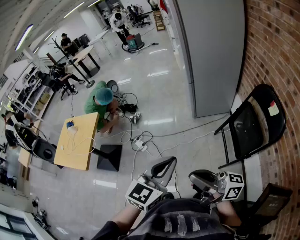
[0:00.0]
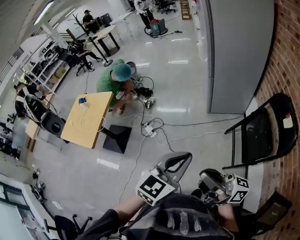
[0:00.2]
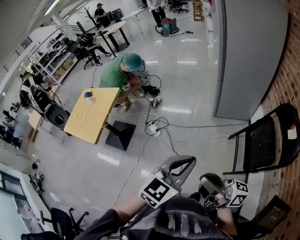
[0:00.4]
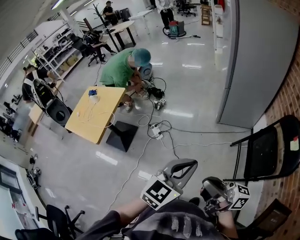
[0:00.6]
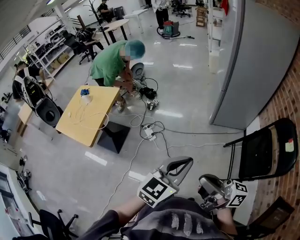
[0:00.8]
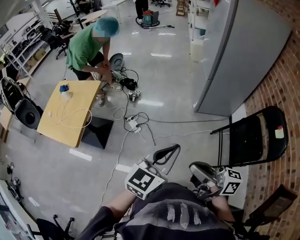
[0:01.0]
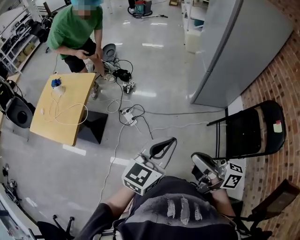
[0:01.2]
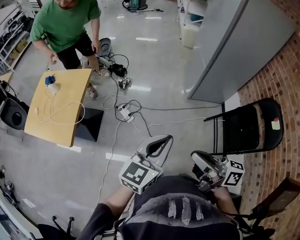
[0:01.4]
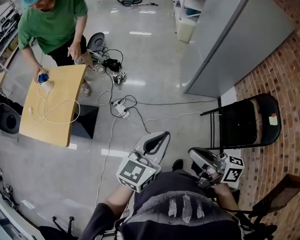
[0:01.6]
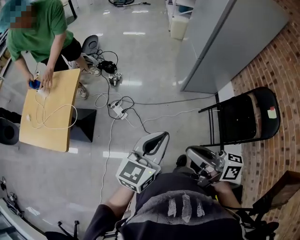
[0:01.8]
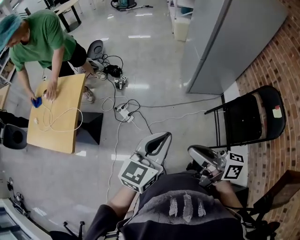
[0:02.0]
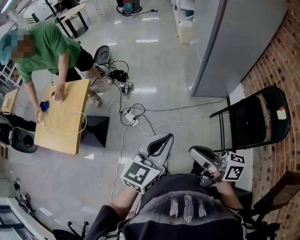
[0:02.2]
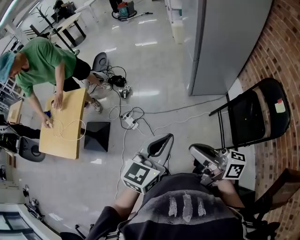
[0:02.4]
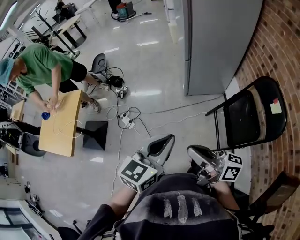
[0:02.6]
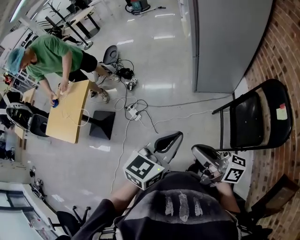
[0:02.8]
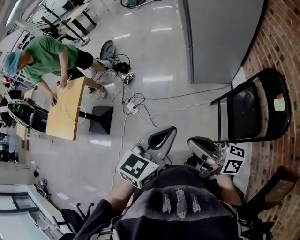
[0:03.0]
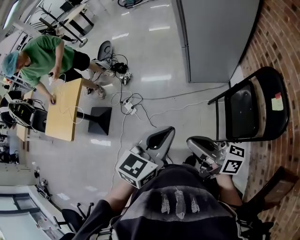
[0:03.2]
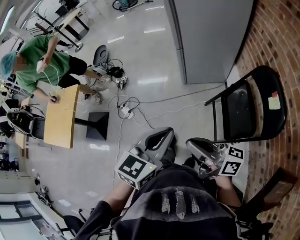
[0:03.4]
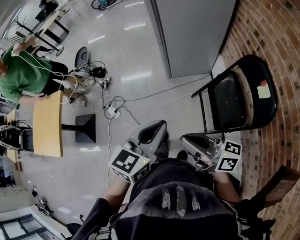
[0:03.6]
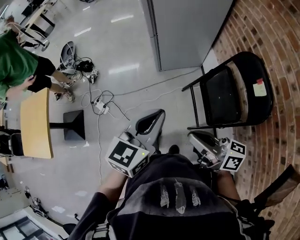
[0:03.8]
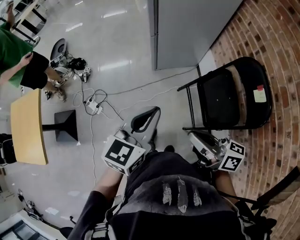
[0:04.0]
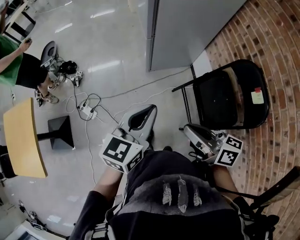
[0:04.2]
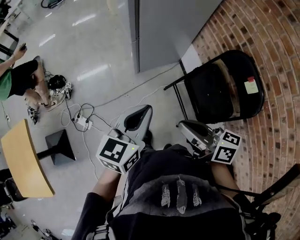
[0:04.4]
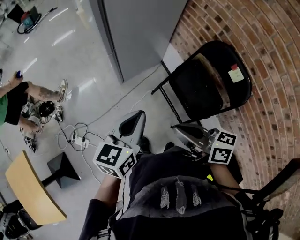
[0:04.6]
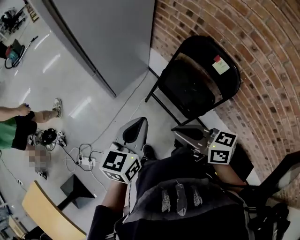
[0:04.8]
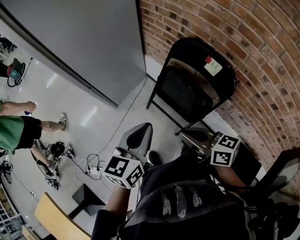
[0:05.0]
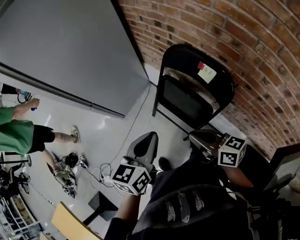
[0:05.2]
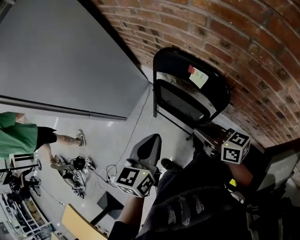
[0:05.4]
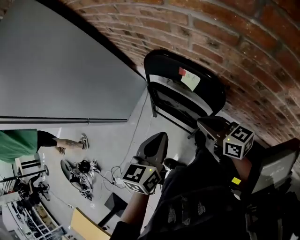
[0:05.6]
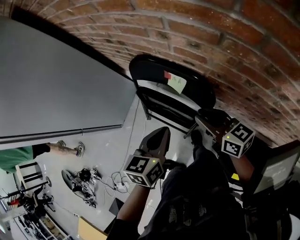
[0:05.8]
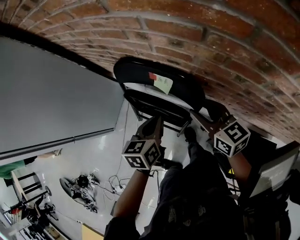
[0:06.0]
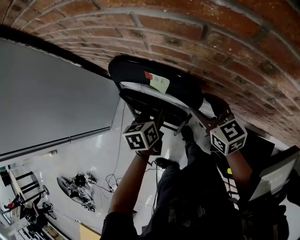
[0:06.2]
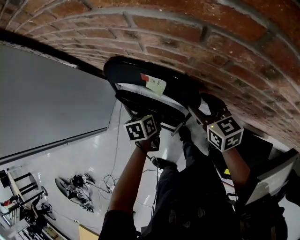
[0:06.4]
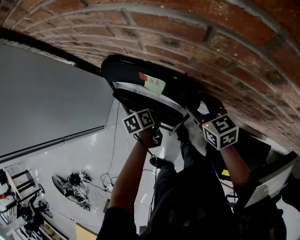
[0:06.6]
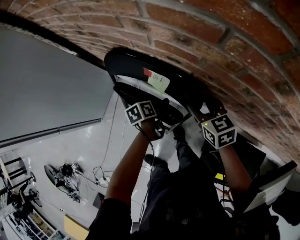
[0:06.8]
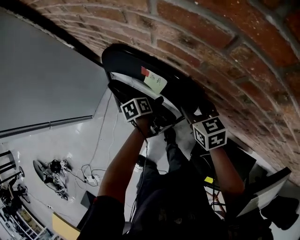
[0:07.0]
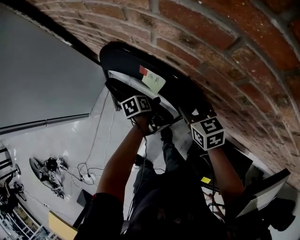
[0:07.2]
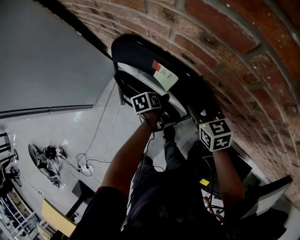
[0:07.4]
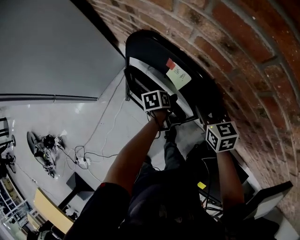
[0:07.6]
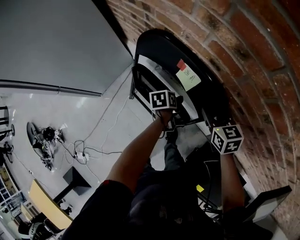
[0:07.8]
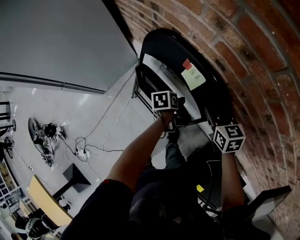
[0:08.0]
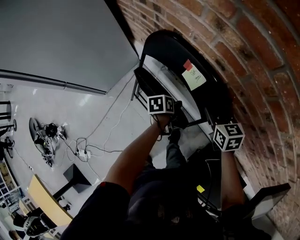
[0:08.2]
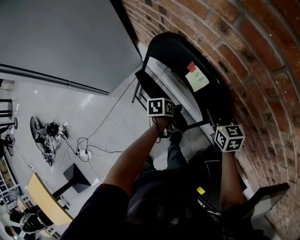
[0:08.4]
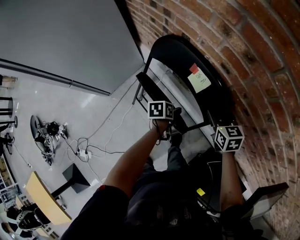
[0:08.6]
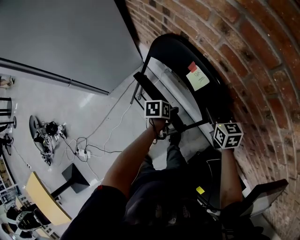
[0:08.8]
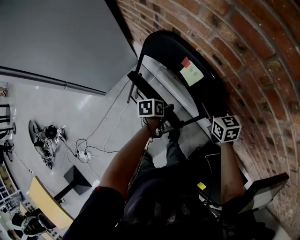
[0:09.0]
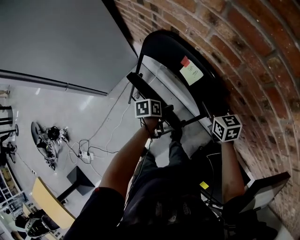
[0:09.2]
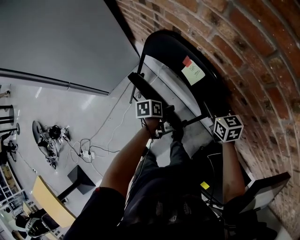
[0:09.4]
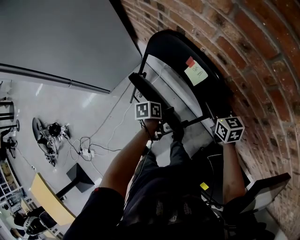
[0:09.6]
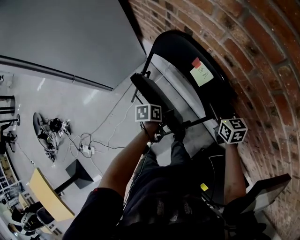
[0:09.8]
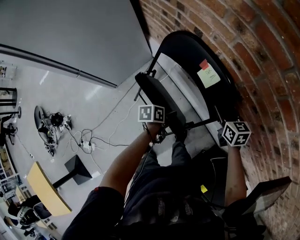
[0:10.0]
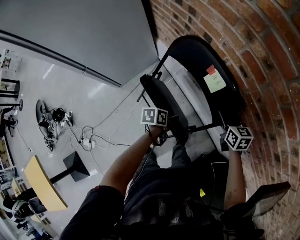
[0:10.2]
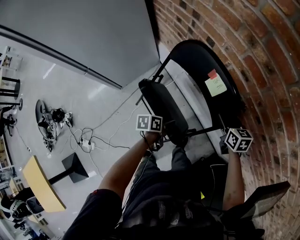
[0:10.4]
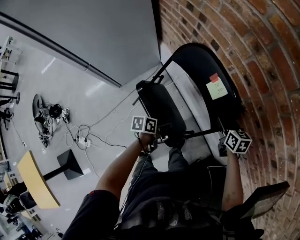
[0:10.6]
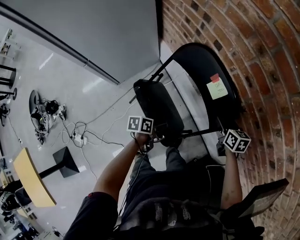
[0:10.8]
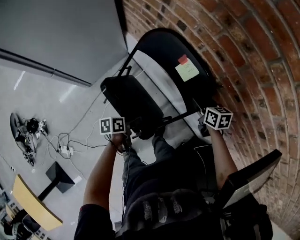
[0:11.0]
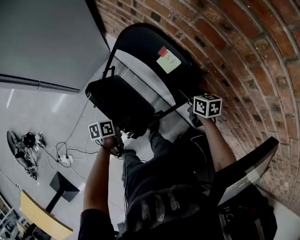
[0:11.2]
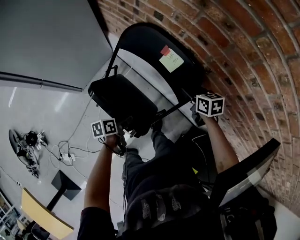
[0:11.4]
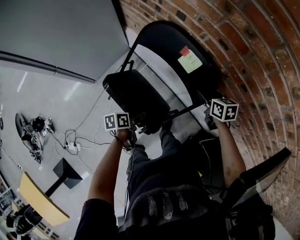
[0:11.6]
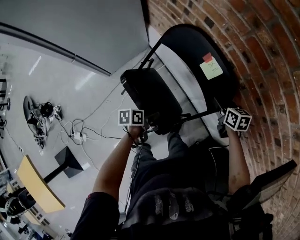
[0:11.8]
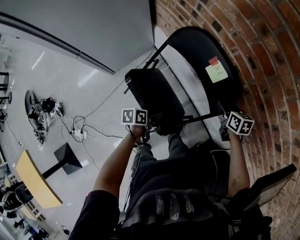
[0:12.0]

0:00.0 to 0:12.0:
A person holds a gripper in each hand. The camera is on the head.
0:00.0 to 0:01.6: The left gripper heads to the left and forward, covering some 25 cm. Meanwhile the right gripper moves forward and to the left, about 25 cm, and rotates about 30 degrees.
0:01.6 to 0:03.0: The grippers both shift to the right by approximately 30 cm.
0:03.0 to 0:04.4: Both grippers travel together forward, roughly 20 cm. The right gripper changes its angle by approximately 40 degrees.
0:04.4 to 0:06.0: The pair of grippers is taken approximately 50 cm. The left gripper rotates some 40 degrees. The right gripper turns by approximately 60 degrees, and opens its fingers.
0:06.0 to 0:07.6: The right gripper goes roughly 10 cm downward, and swivels approximately 20 degrees. Meanwhile the left gripper travels downward by about 20 cm, swivels about 40 degrees, and opens up.
0:07.6 to 0:09.0: The left gripper shifts about 10 cm backward.
0:09.0 to 0:10.4: The left gripper goes roughly 5 cm backward.
0:10.4 to 0:12.0: The left gripper shifts about 5 cm backward.

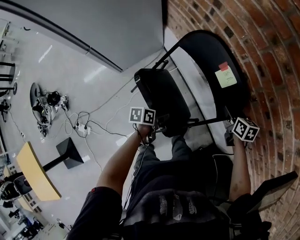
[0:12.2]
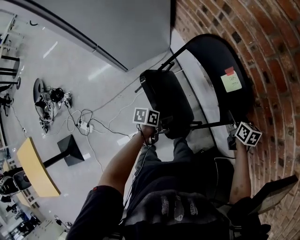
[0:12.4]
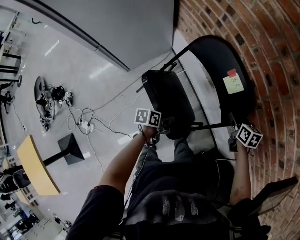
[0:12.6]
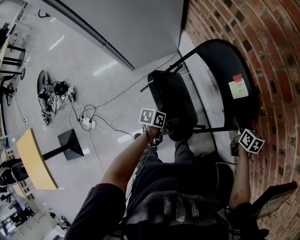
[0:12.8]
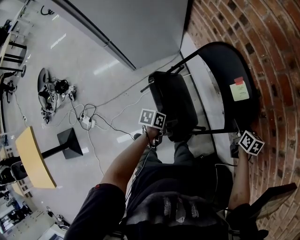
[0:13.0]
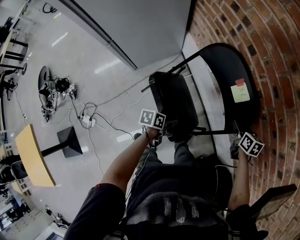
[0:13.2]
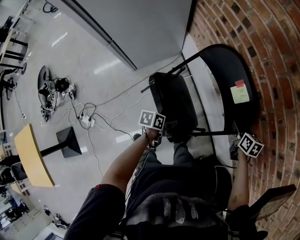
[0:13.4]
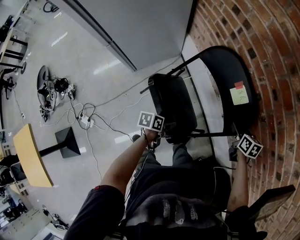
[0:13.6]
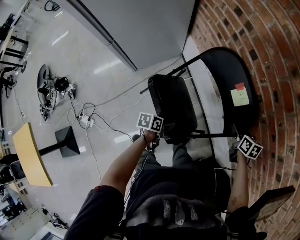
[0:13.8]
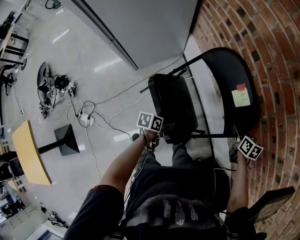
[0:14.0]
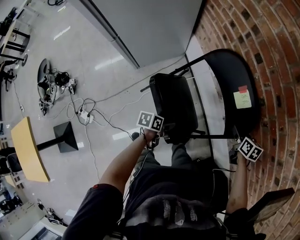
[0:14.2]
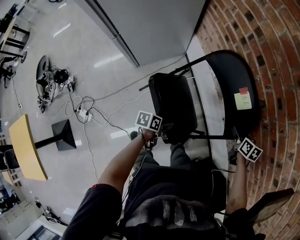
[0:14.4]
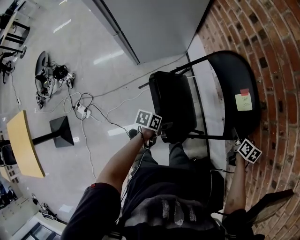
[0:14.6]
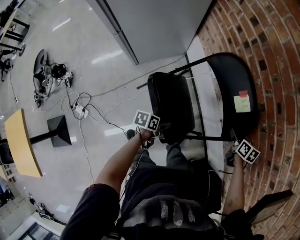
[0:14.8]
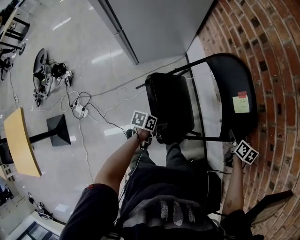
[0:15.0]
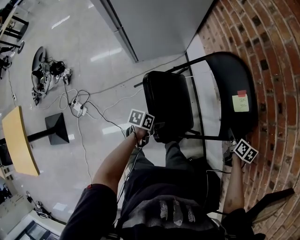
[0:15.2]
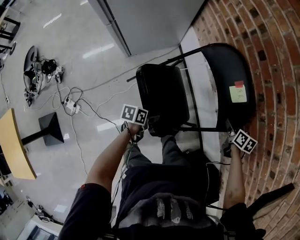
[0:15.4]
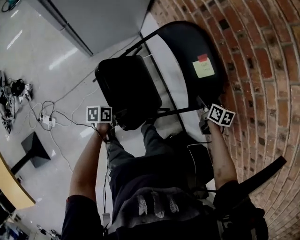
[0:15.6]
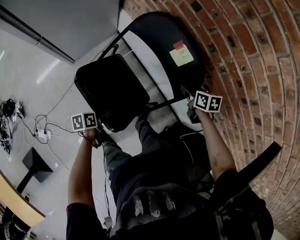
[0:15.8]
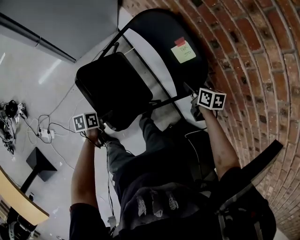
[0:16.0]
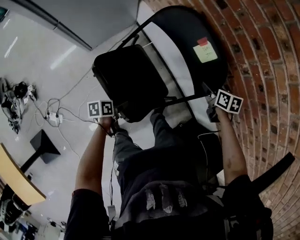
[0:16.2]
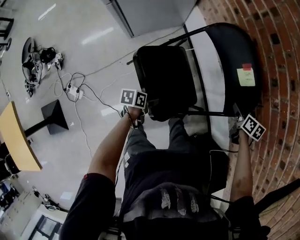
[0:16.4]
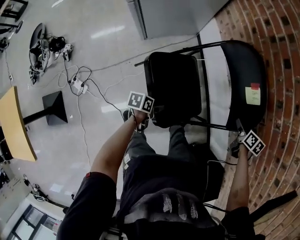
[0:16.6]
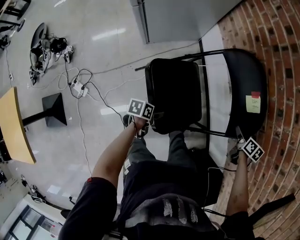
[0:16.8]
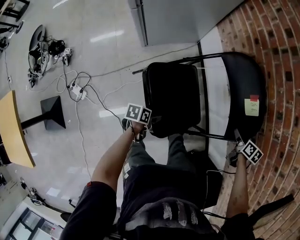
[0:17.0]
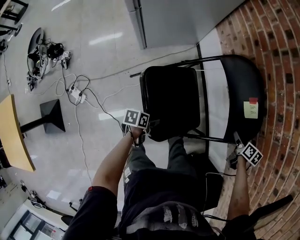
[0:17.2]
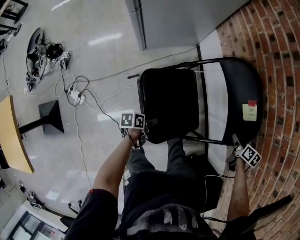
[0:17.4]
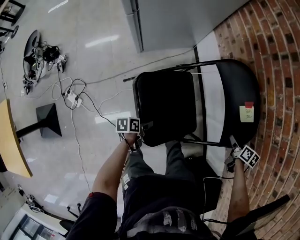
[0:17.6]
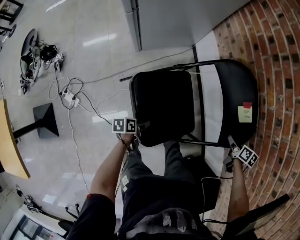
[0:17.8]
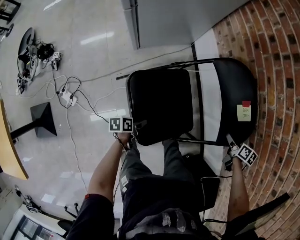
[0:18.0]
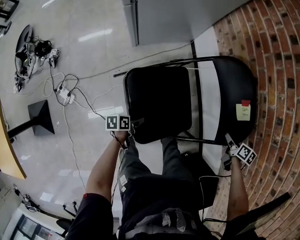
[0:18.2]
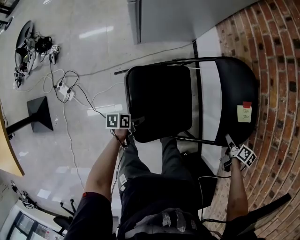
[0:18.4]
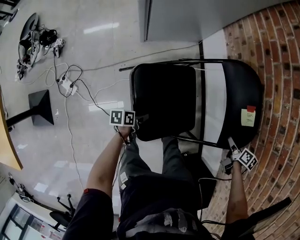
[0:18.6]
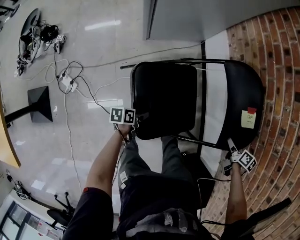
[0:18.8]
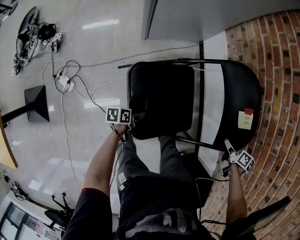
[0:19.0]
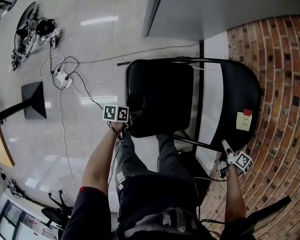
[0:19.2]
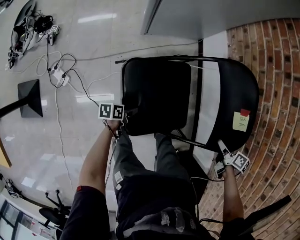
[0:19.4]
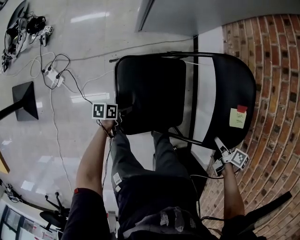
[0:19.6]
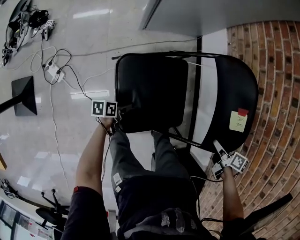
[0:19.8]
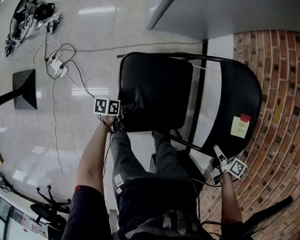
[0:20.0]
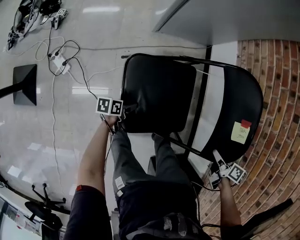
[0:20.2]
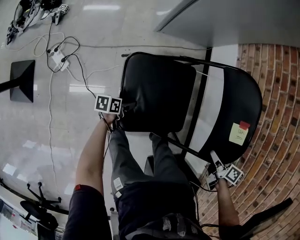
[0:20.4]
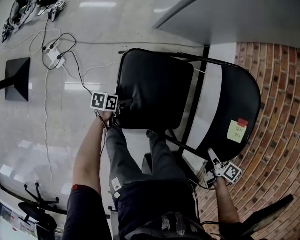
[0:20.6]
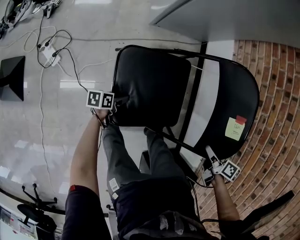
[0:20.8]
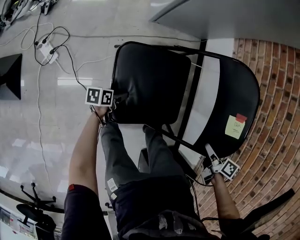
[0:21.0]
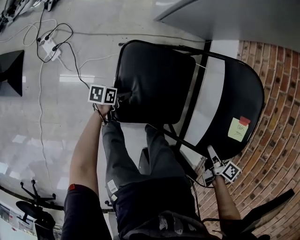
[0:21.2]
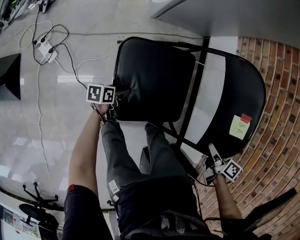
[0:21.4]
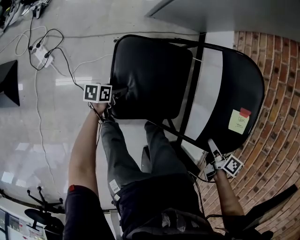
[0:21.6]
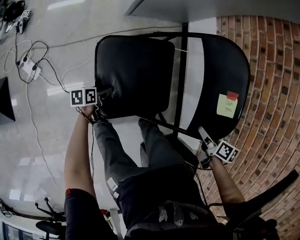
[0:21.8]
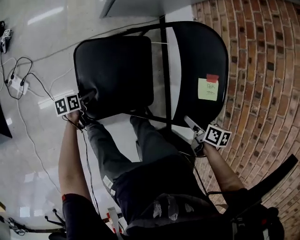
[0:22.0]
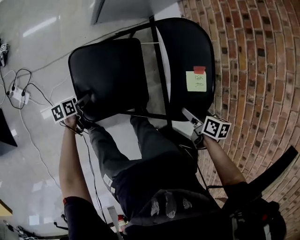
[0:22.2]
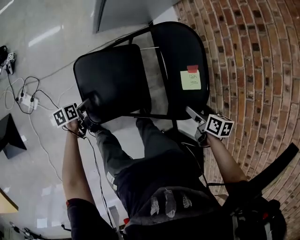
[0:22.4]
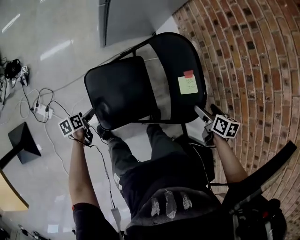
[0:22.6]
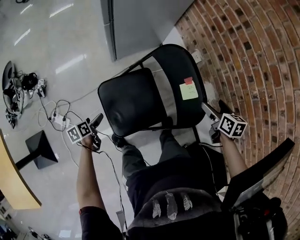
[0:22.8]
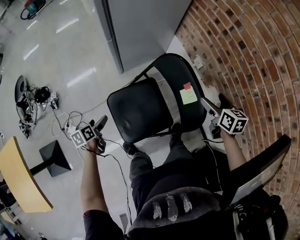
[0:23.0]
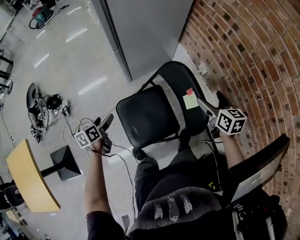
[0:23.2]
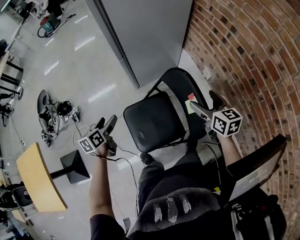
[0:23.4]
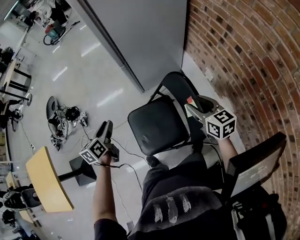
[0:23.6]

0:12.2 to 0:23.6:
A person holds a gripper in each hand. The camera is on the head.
0:12.2 to 0:15.0: The grippers make only small movements.
0:15.0 to 0:16.4: The left gripper shifts by approximately 5 cm.
0:16.4 to 0:17.8: The right gripper goes some 5 cm downward; the left gripper shifts roughly 10 cm downward, to the left and backward.
0:17.8 to 0:19.4: The right gripper heads to the left and backward, covering about 10 cm; the left gripper shifts approximately 10 cm to the left and downward.
0:19.4 to 0:20.8: The right gripper shifts roughly 10 cm to the left. The left gripper moves to the left and downward, some 10 cm.
0:20.8 to 0:22.2: The right gripper opens.
0:22.2 to 0:23.6: The left gripper travels upward by roughly 50 cm, changes its angle by approximately 50 degrees, and closes up. Meanwhile the right gripper moves upward, roughly 25 cm, points its fingers approximately 40 degrees further upward, and closes up.
